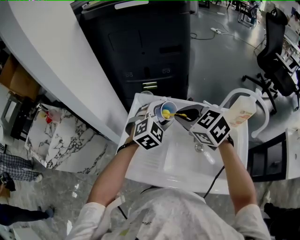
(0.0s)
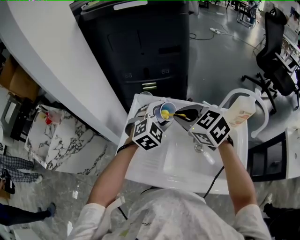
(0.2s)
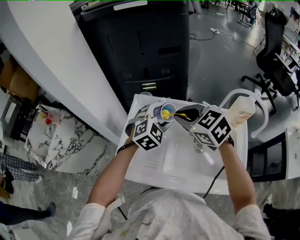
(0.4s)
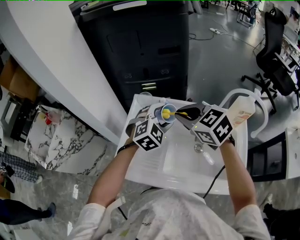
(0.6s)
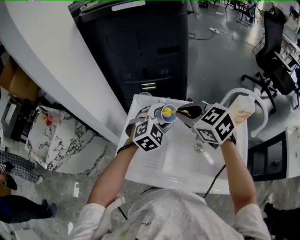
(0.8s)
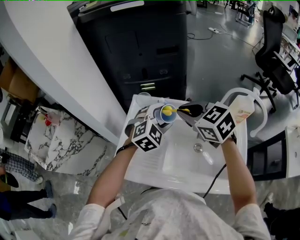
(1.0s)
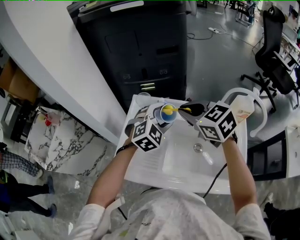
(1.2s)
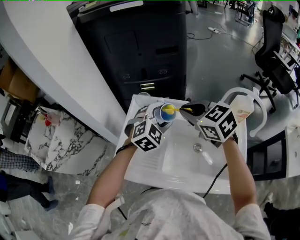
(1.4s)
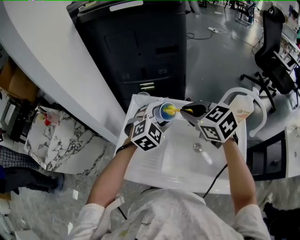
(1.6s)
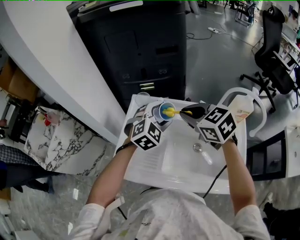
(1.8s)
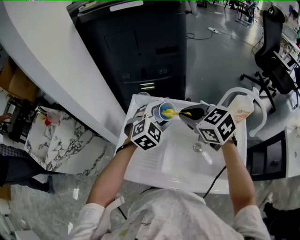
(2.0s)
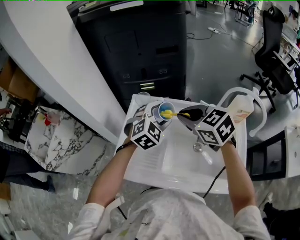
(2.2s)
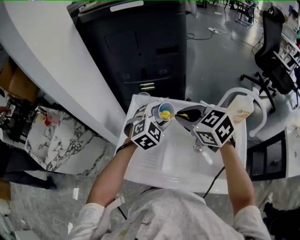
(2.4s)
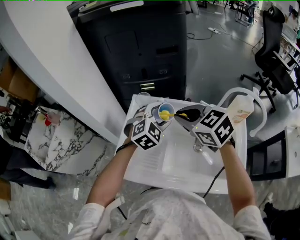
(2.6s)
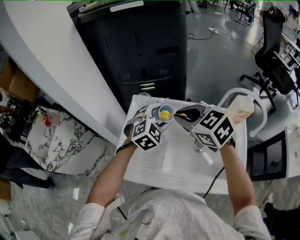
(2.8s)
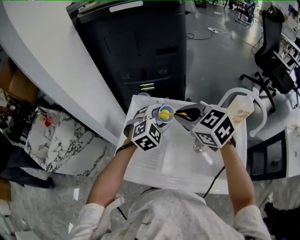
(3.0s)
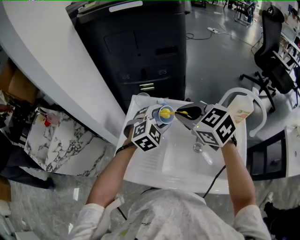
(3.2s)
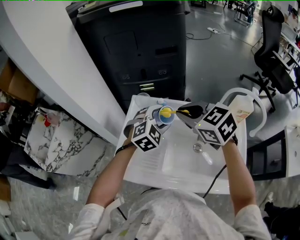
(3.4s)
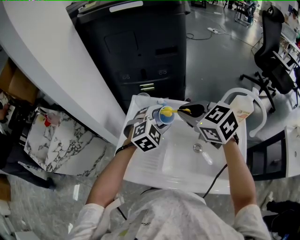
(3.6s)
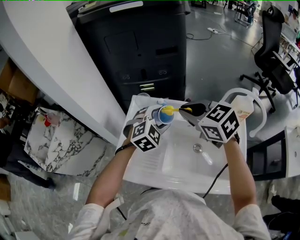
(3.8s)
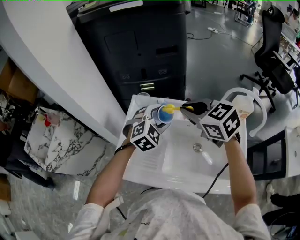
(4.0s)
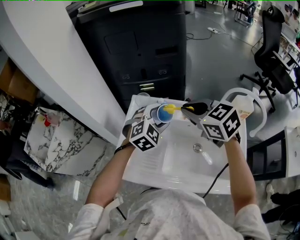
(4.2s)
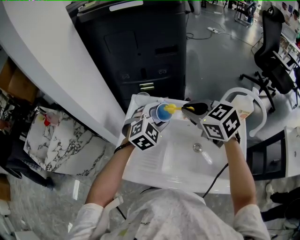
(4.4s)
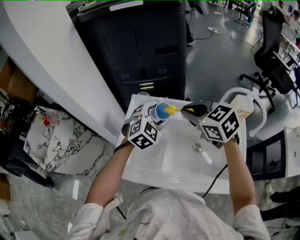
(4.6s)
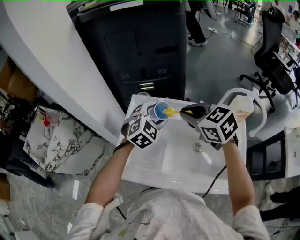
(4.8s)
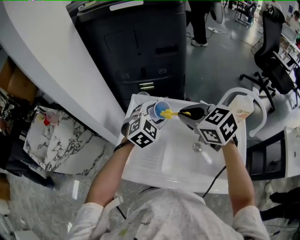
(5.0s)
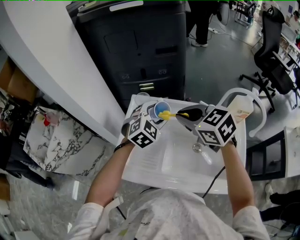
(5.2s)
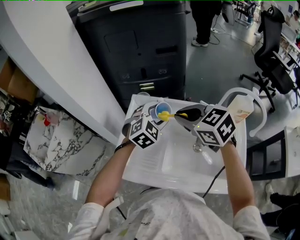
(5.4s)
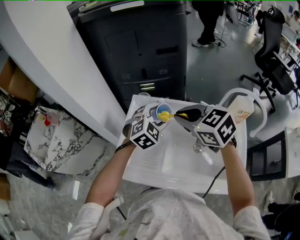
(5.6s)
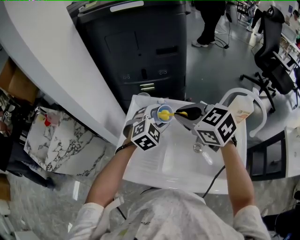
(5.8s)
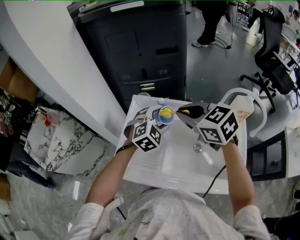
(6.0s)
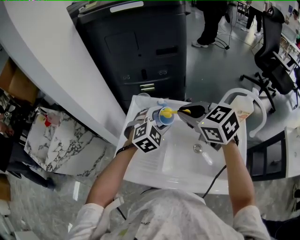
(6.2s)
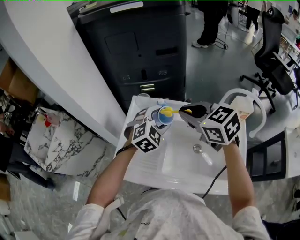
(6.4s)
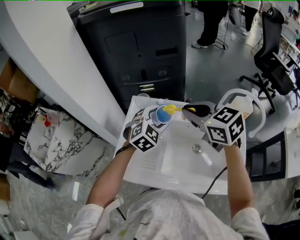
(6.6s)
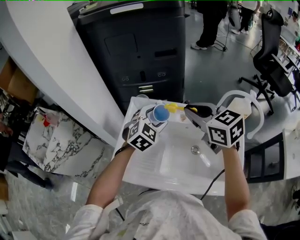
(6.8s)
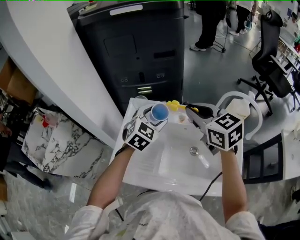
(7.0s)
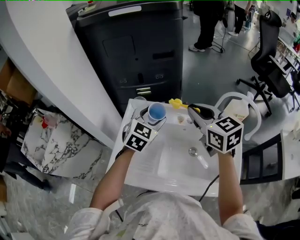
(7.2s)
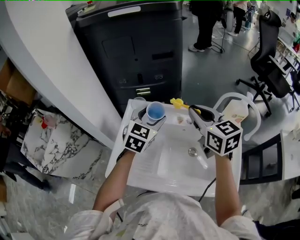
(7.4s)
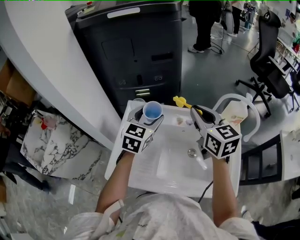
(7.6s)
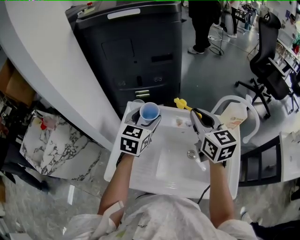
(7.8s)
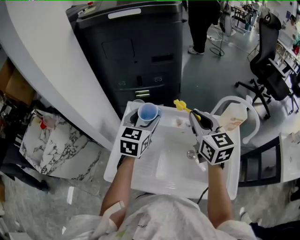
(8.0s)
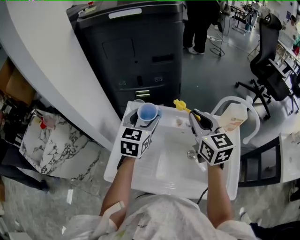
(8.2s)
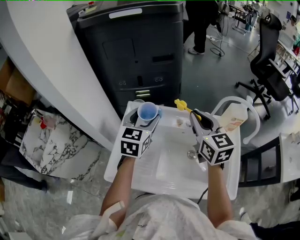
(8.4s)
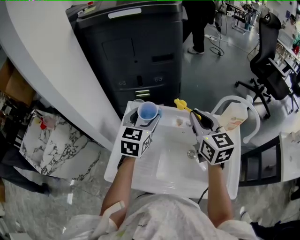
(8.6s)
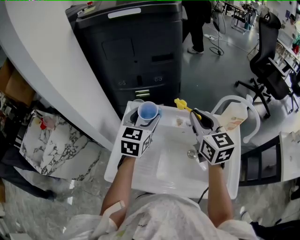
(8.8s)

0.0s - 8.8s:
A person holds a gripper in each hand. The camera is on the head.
0.0s - 5.8s: There are only small adjustments of the grippers.
5.8s - 7.4s: The left gripper ends up roughly 5 cm from where it was, and rotates approximately 30 degrees. The right gripper heads to the right, covering approximately 10 cm, and rotates approximately 30 degrees.
7.4s - 8.8s: The grippers move only a little.

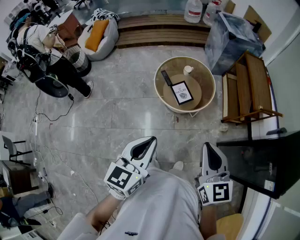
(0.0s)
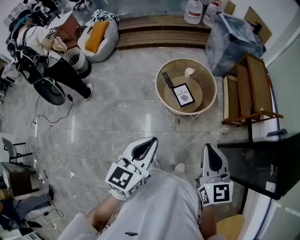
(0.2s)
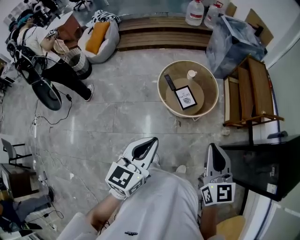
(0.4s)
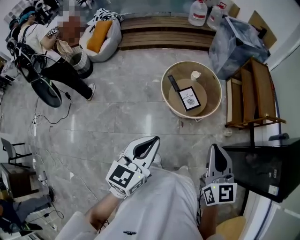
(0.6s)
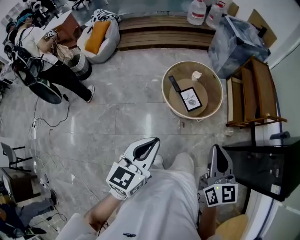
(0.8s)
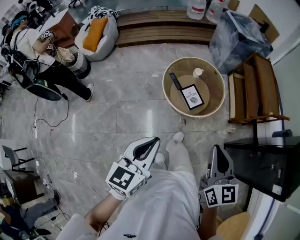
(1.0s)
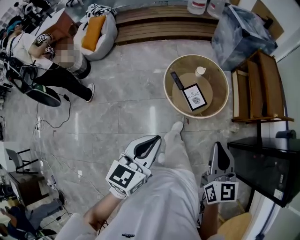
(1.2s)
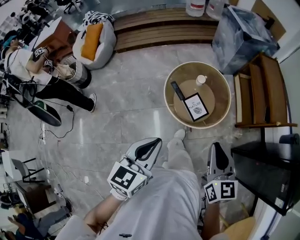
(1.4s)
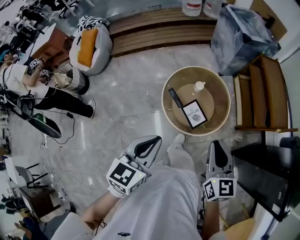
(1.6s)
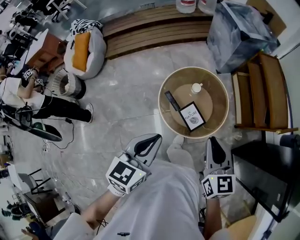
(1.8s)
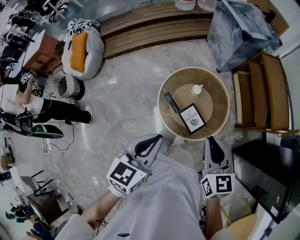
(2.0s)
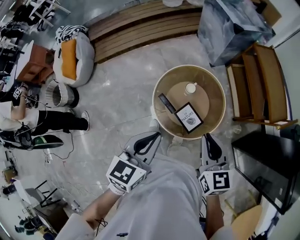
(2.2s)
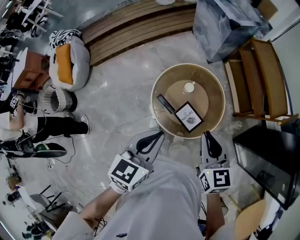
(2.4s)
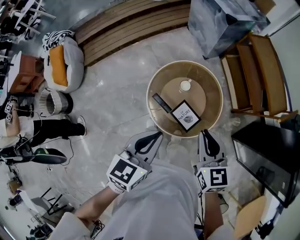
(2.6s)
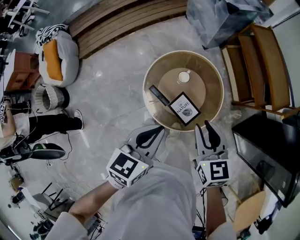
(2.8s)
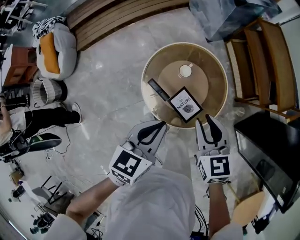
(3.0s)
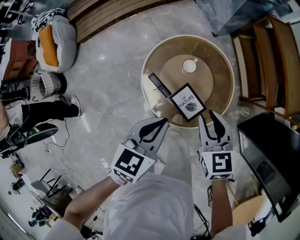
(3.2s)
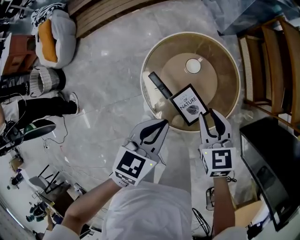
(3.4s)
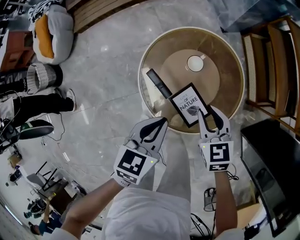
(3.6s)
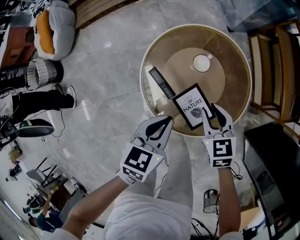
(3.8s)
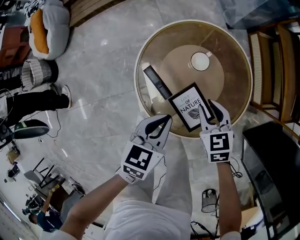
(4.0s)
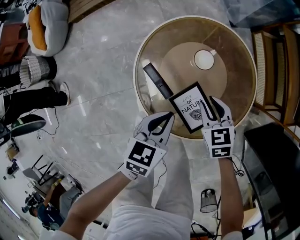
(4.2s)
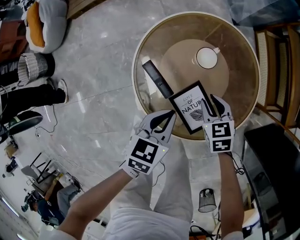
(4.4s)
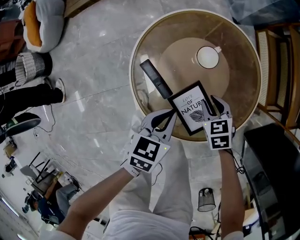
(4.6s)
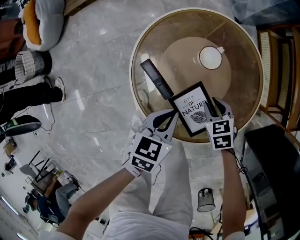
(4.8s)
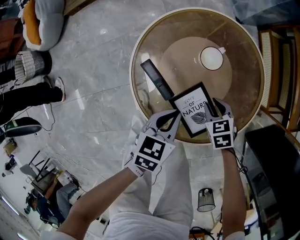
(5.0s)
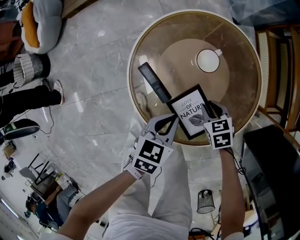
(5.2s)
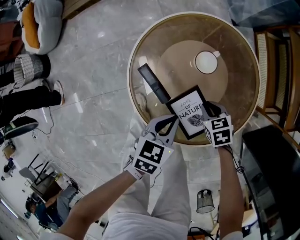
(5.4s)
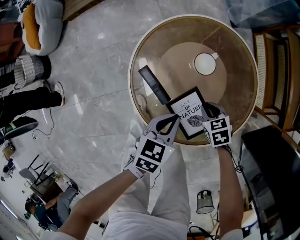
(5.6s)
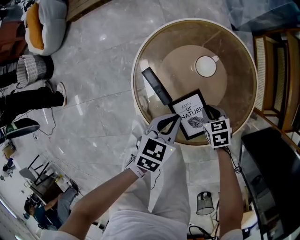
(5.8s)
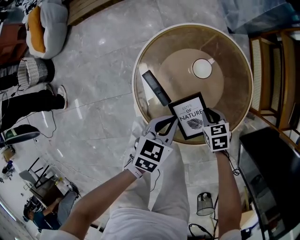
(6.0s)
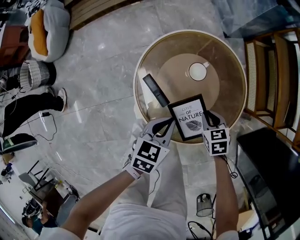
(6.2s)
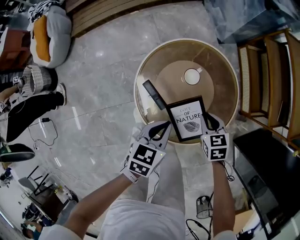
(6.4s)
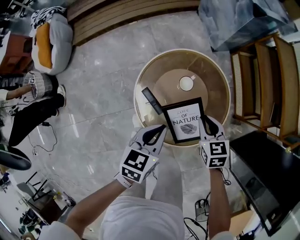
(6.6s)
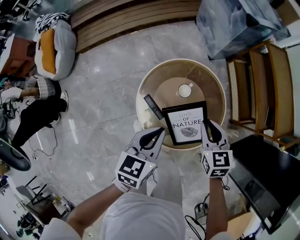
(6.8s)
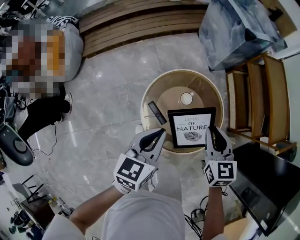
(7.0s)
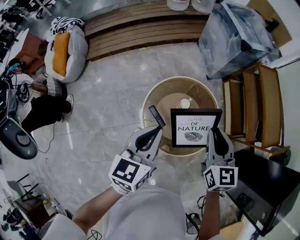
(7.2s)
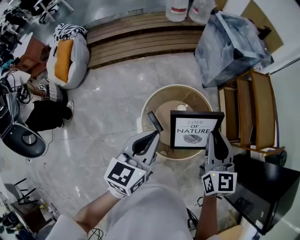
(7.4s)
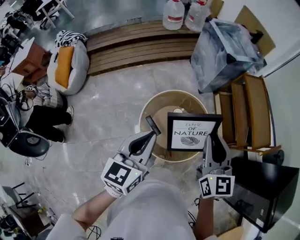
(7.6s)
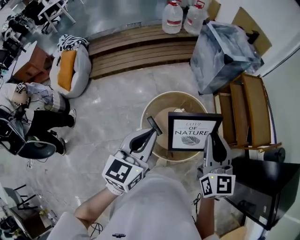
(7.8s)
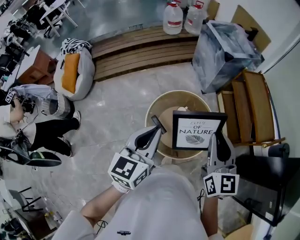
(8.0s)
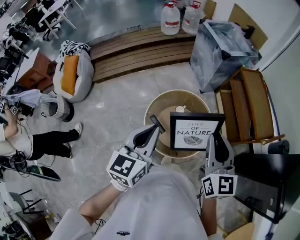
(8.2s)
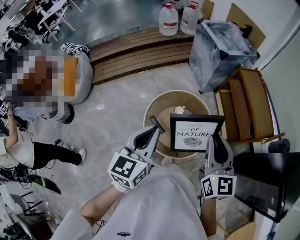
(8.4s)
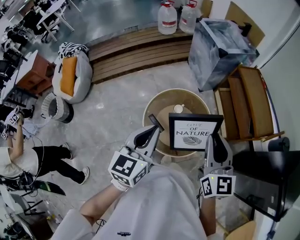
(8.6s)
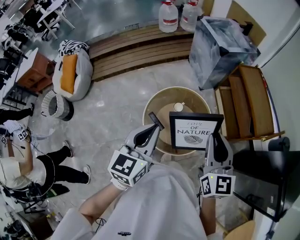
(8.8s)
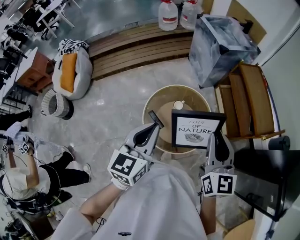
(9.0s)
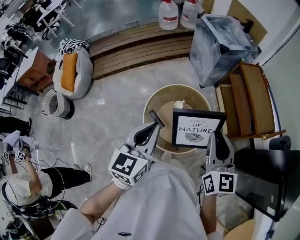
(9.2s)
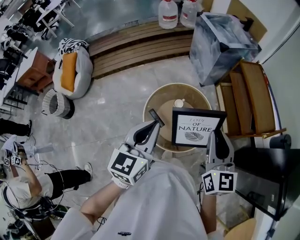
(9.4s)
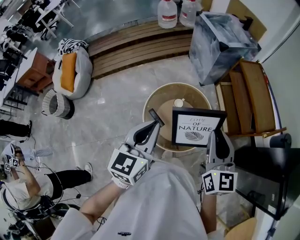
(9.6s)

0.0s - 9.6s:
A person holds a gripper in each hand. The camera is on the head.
0.0s - 1.6s: The left gripper moves forward and to the left, about 30 cm; the right gripper goes approximately 30 cm forward.
1.6s - 3.2s: The right gripper moves downward and forward, approximately 30 cm. Meanwhile the left gripper heads forward and downward, covering approximately 30 cm.
3.2s - 4.8s: Both grippers move downward, roughly 35 cm. The right gripper changes its angle by approximately 30 degrees.
4.8s - 6.4s: Both grippers move upward, approximately 15 cm.
6.4s - 8.0s: Both grippers travel together upward, about 50 cm. The left gripper tips its fingers upward by some 30 degrees; the right gripper points its fingers approximately 50 degrees further upward.
8.0s - 9.6s: The grippers move only a little.

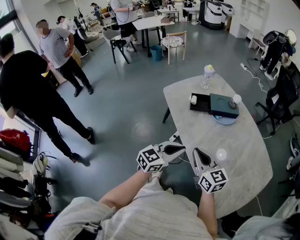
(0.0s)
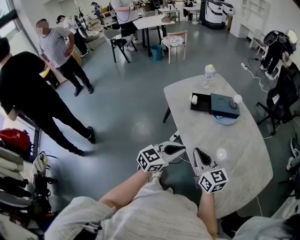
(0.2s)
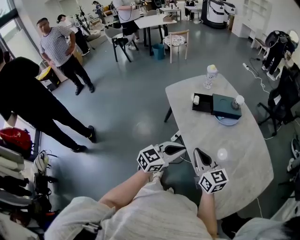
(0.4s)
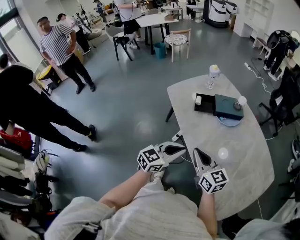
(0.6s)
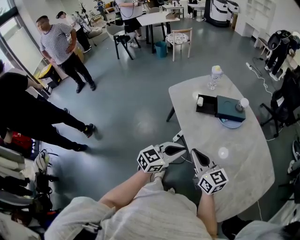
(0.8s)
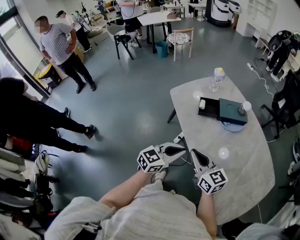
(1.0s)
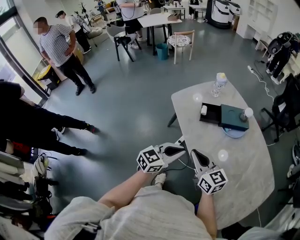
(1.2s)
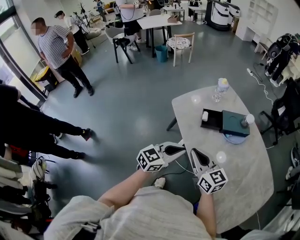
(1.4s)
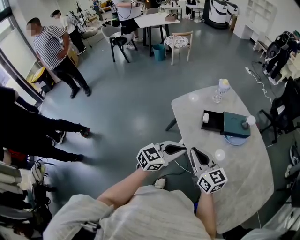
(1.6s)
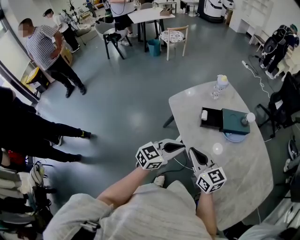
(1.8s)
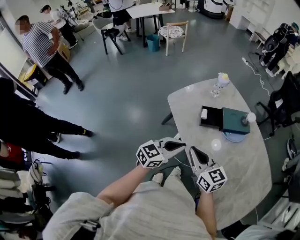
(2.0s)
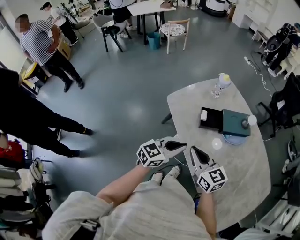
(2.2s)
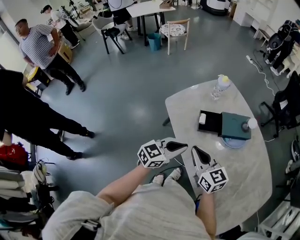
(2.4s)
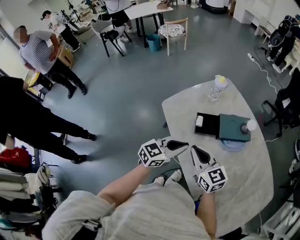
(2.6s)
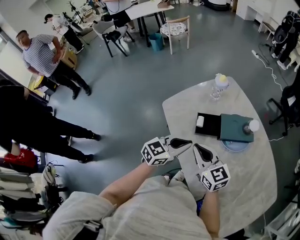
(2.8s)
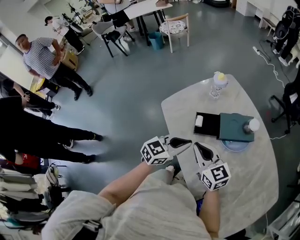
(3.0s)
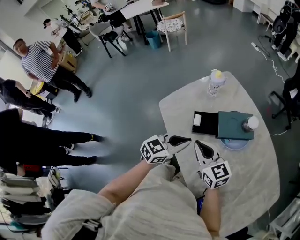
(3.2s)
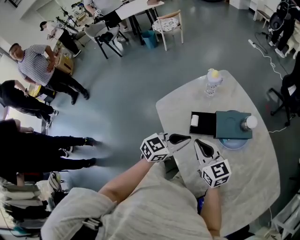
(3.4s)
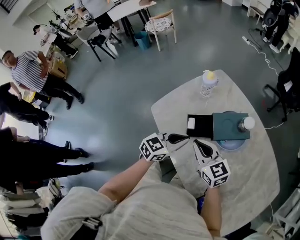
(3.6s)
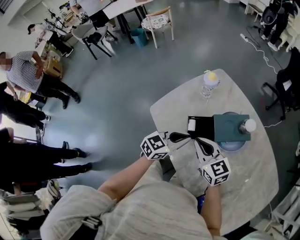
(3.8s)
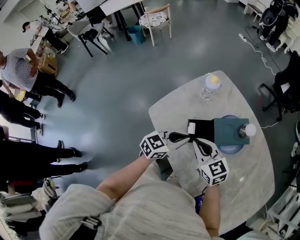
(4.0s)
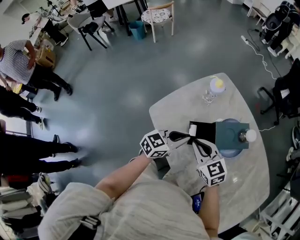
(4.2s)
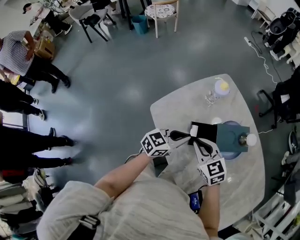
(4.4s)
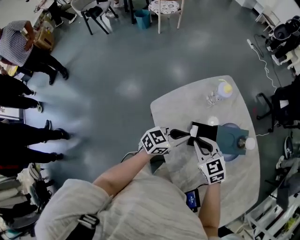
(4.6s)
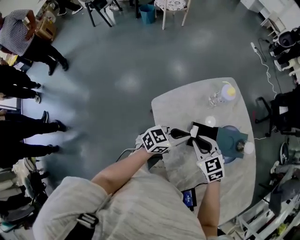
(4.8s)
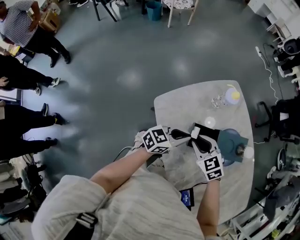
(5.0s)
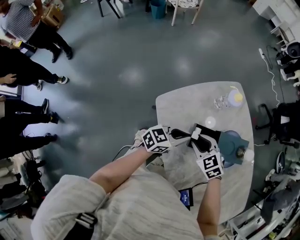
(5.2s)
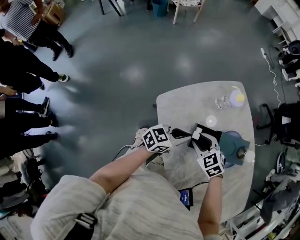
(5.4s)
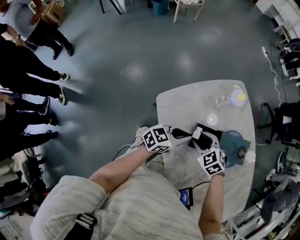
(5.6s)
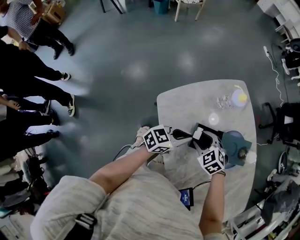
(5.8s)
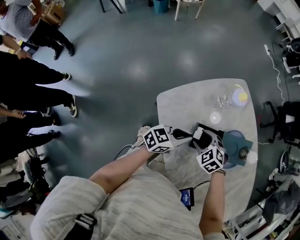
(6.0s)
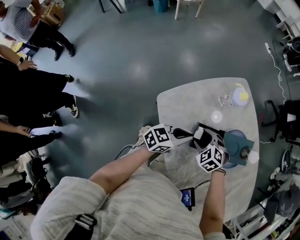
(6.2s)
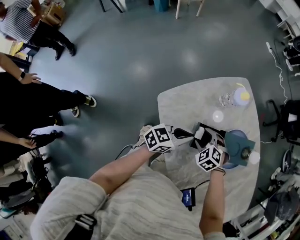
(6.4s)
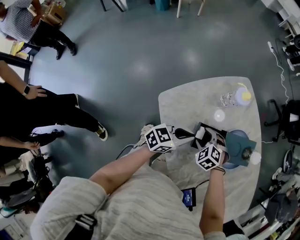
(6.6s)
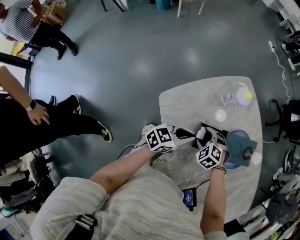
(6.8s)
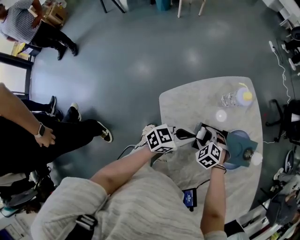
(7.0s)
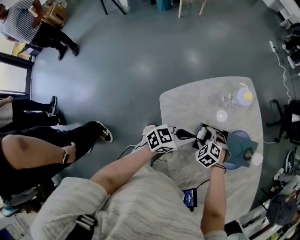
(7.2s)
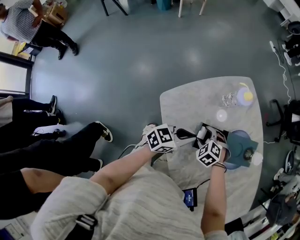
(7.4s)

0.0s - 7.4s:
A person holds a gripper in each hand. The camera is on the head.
0.0s - 1.4s: Both grippers move to the left and forward, roughly 15 cm.
1.4s - 3.0s: The two grippers go approximately 20 cm forward.
3.0s - 4.4s: The grippers both shift forward and downward by roughly 15 cm. The right gripper changes its angle by roughly 20 degrees.
4.4s - 6.0s: The right gripper heads downward, covering about 10 cm, rotates some 40 degrees, and opens up.
6.0s - 7.4s: The right gripper goes approximately 5 cm downward.
